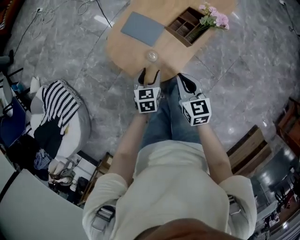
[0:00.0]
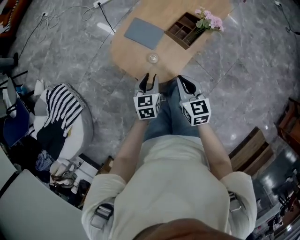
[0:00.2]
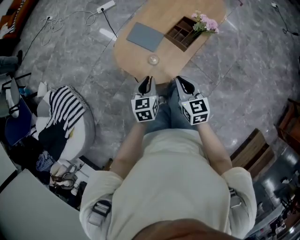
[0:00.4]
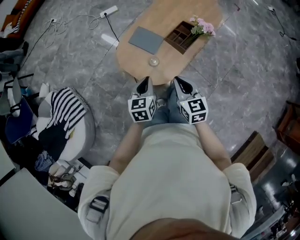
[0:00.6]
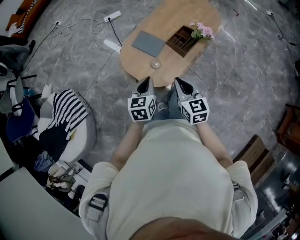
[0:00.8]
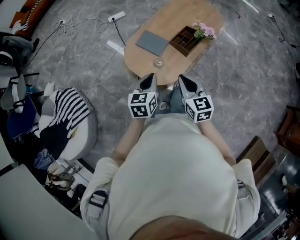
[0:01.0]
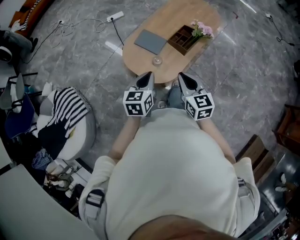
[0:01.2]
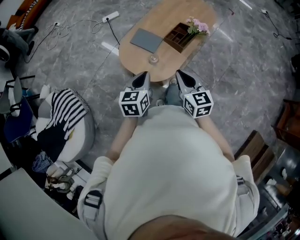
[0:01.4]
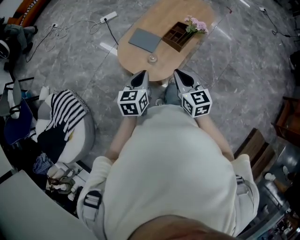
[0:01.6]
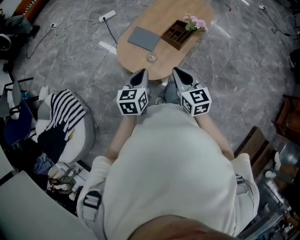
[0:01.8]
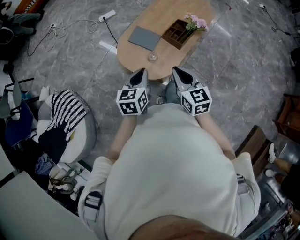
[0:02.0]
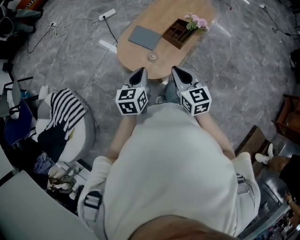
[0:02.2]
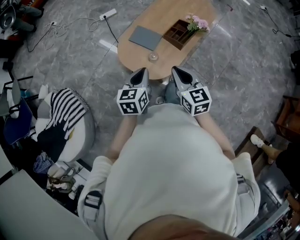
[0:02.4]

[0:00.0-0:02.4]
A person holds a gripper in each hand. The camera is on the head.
0.0 to 1.2 s: The left gripper shifts roughly 20 cm upward, and closes up; the right gripper goes some 15 cm upward and backward.
1.2 to 2.4 s: The grippers move only a little.

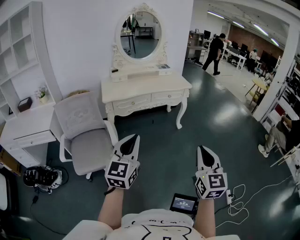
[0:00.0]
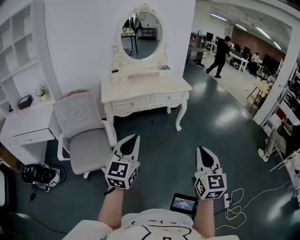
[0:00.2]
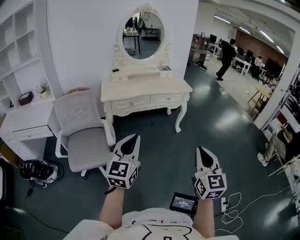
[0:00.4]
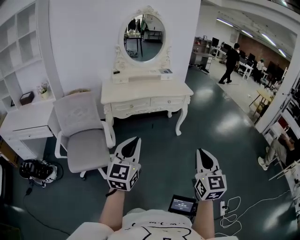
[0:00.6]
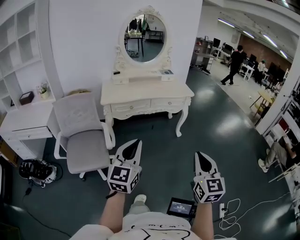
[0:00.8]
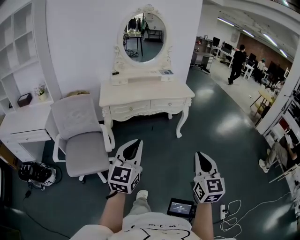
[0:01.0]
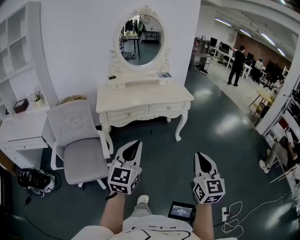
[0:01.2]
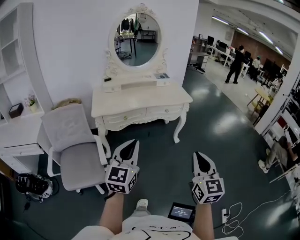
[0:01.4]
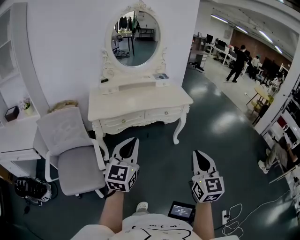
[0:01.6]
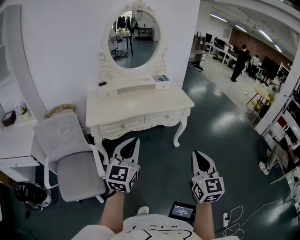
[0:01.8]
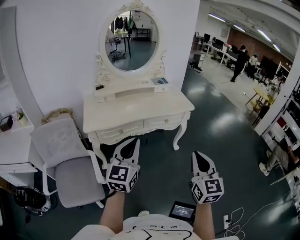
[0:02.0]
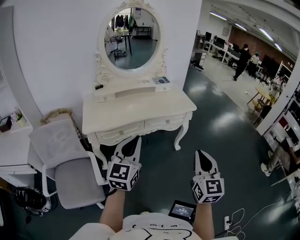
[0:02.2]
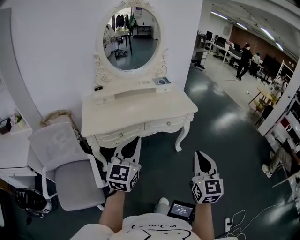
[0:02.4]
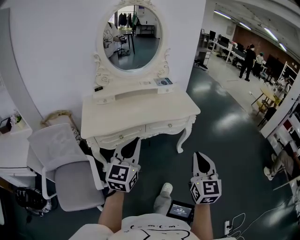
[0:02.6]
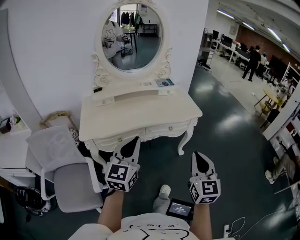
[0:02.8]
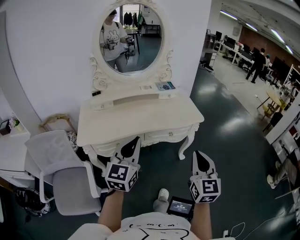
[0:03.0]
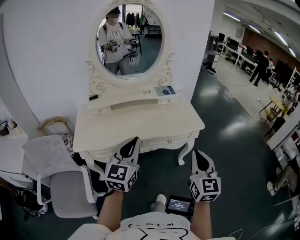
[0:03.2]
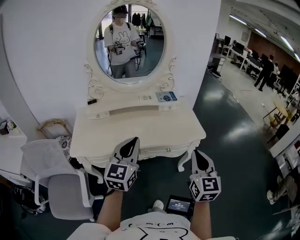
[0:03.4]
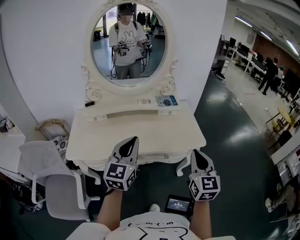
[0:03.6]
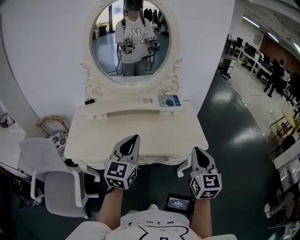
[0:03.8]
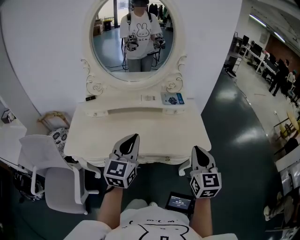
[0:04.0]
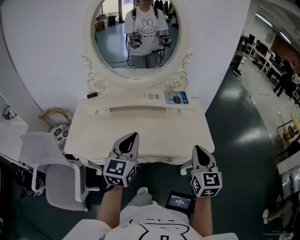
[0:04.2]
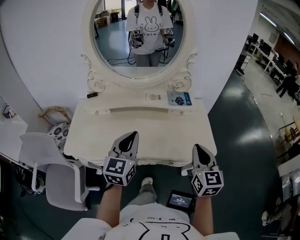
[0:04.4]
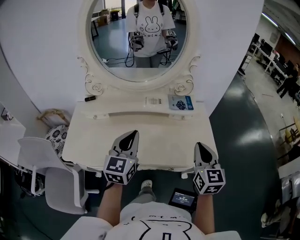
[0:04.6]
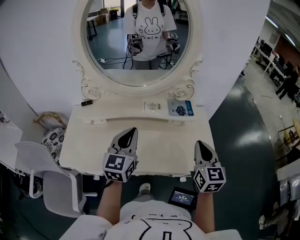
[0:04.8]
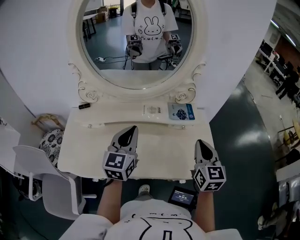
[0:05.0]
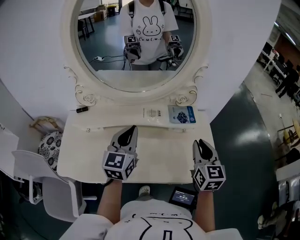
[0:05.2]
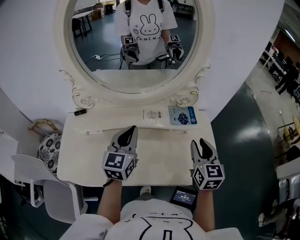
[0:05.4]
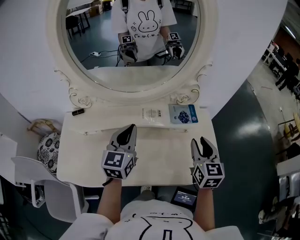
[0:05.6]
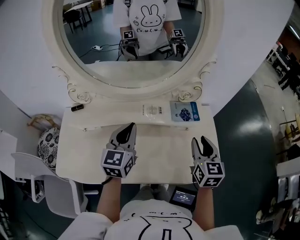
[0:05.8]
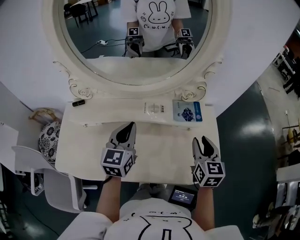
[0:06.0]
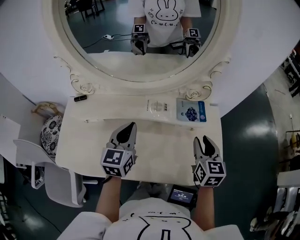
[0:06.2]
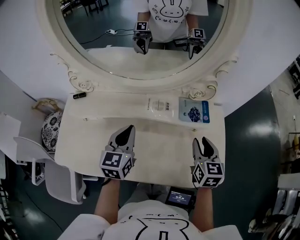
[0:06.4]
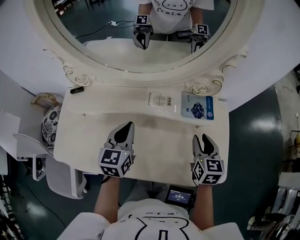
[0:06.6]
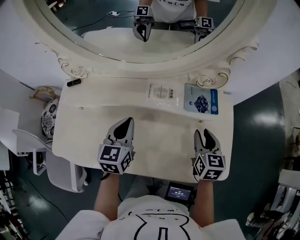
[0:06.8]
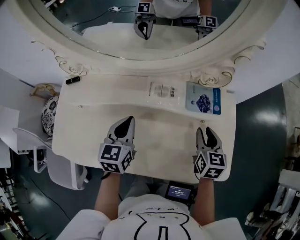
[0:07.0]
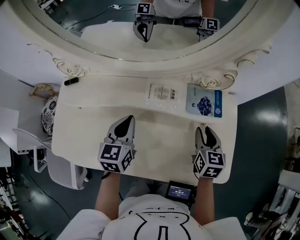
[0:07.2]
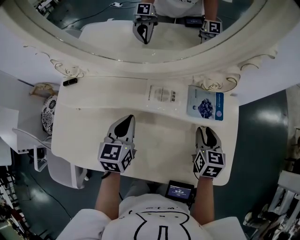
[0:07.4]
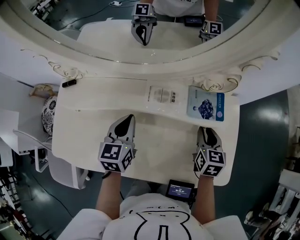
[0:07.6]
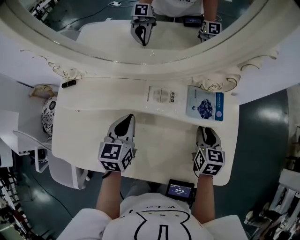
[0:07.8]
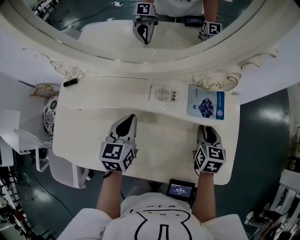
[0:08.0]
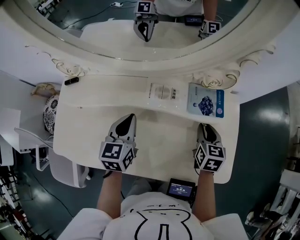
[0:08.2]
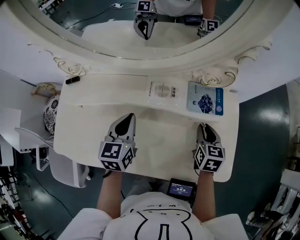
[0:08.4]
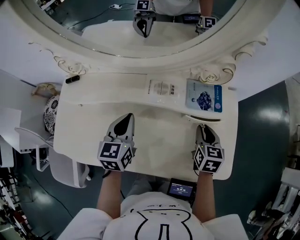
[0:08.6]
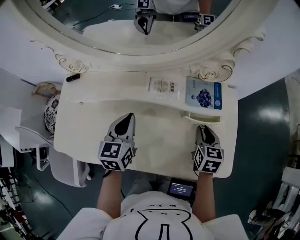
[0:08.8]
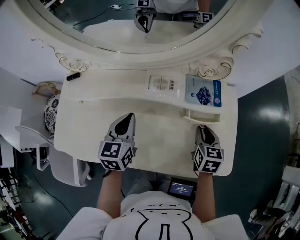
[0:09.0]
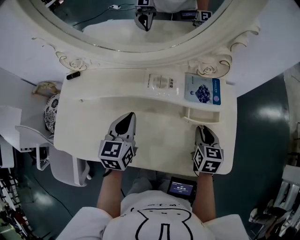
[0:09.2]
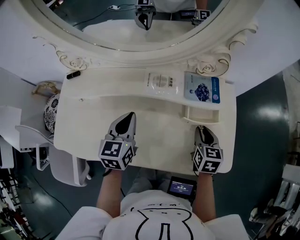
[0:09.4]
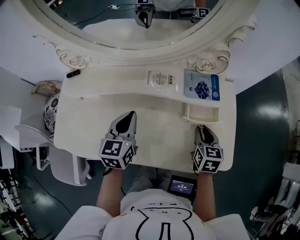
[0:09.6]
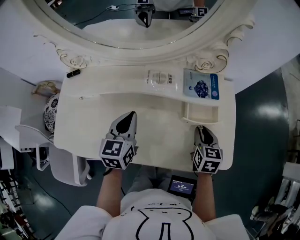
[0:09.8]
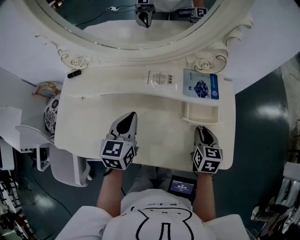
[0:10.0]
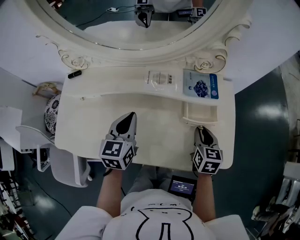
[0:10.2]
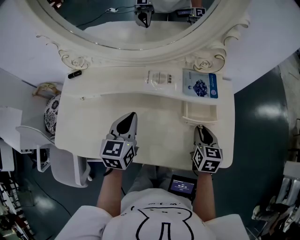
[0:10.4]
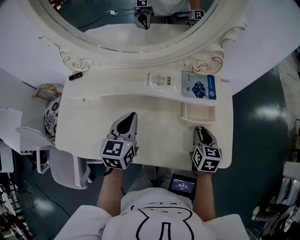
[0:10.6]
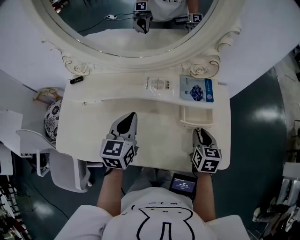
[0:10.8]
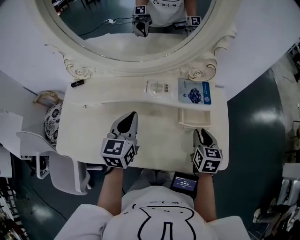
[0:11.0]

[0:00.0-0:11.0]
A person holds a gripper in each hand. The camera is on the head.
0.0 to 1.6 s: Both grippers move forward, approximately 20 cm.
1.6 to 3.2 s: The grippers both shift forward by approximately 30 cm.
3.2 to 4.8 s: The grippers both shift forward by about 30 cm.
4.8 to 6.2 s: Both grippers travel together forward and downward, some 15 cm. The right gripper opens.
6.2 to 7.8 s: The right gripper heads downward and forward, covering some 15 cm; the left gripper goes some 10 cm downward.
7.8 to 9.4 s: Both grippers move backward, some 5 cm.
9.4 to 11.0 s: The grippers make only small movements.

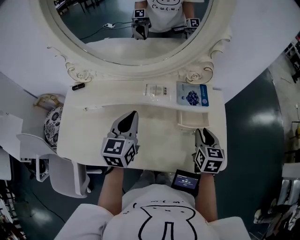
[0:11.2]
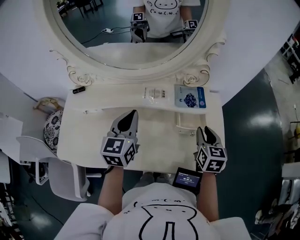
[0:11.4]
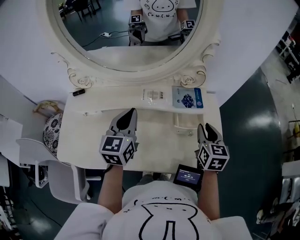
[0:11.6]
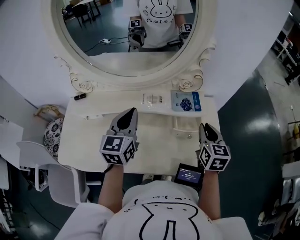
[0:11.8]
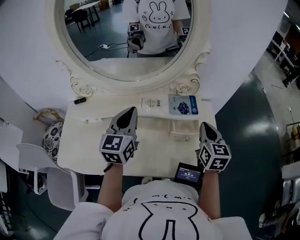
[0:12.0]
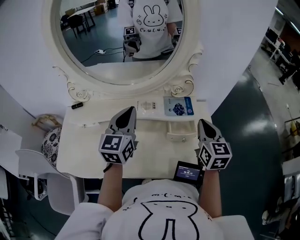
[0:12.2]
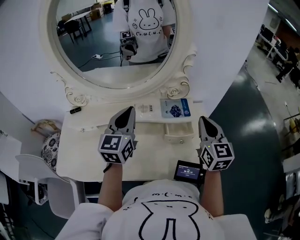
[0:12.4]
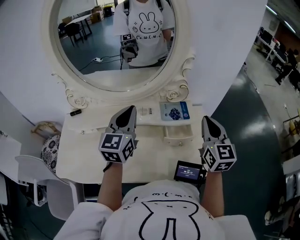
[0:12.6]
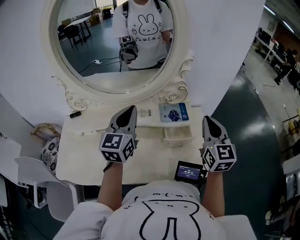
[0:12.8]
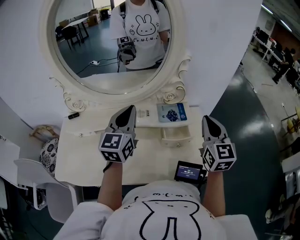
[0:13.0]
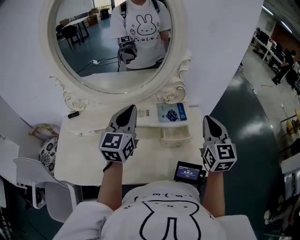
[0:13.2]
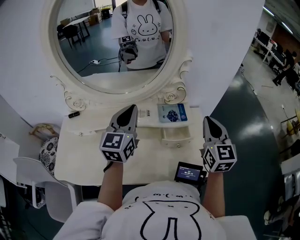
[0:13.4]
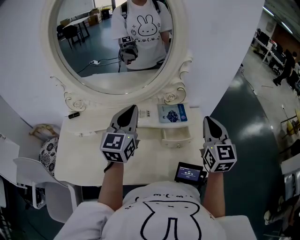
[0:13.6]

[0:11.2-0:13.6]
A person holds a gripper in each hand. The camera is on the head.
11.2 to 12.4 s: The left gripper heads upward, covering about 10 cm. The right gripper is displaced upward by about 15 cm, and turns by some 30 degrees.
12.4 to 13.6 s: The grippers make only small movements.

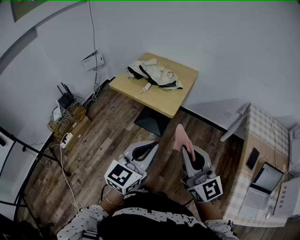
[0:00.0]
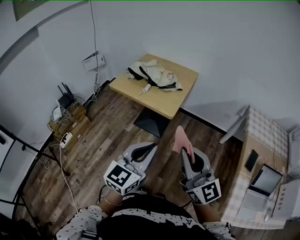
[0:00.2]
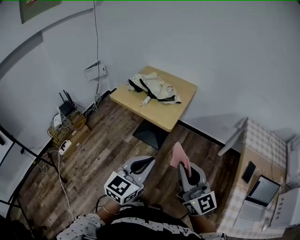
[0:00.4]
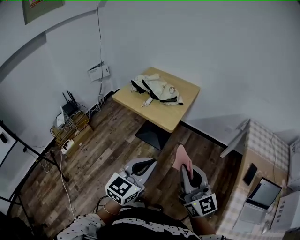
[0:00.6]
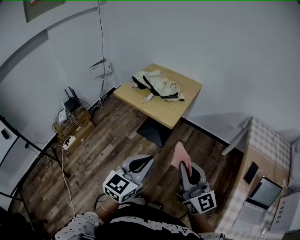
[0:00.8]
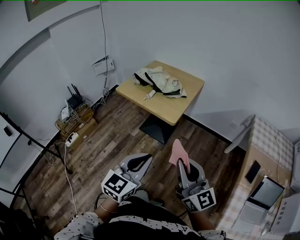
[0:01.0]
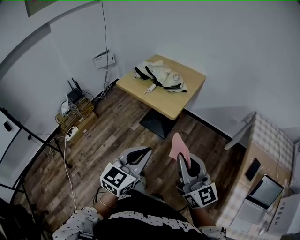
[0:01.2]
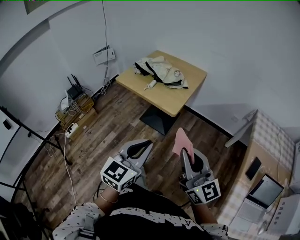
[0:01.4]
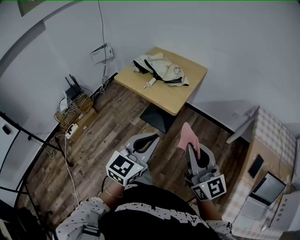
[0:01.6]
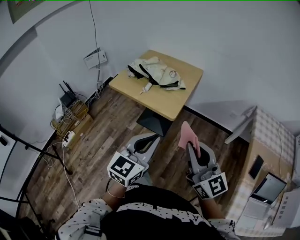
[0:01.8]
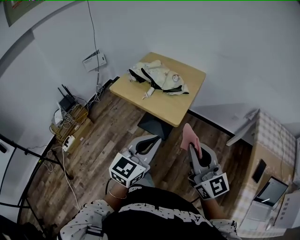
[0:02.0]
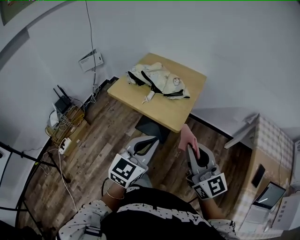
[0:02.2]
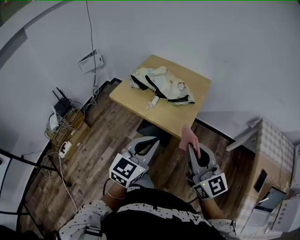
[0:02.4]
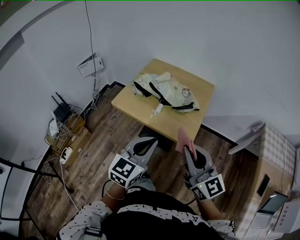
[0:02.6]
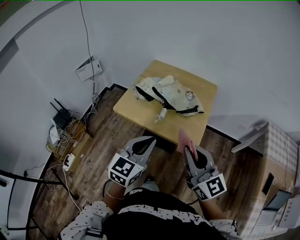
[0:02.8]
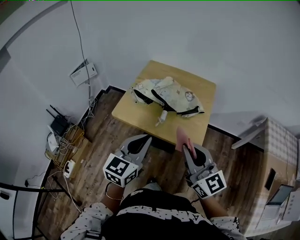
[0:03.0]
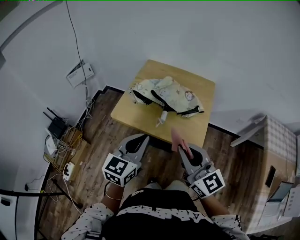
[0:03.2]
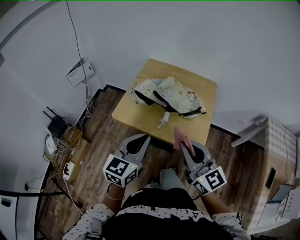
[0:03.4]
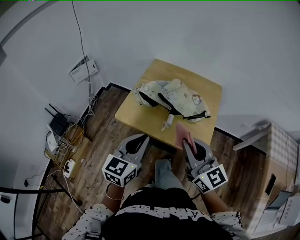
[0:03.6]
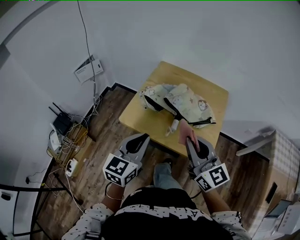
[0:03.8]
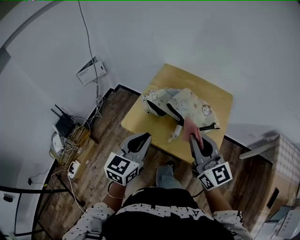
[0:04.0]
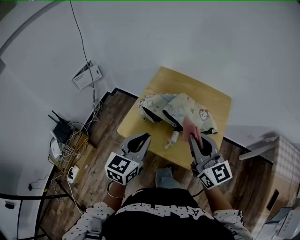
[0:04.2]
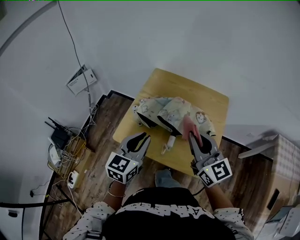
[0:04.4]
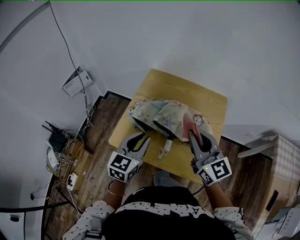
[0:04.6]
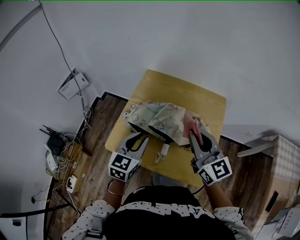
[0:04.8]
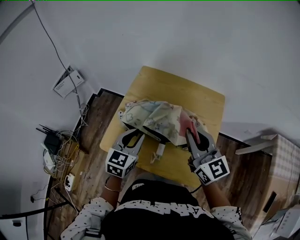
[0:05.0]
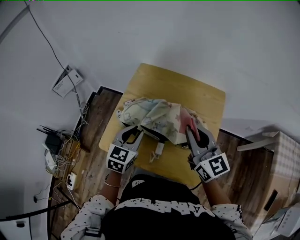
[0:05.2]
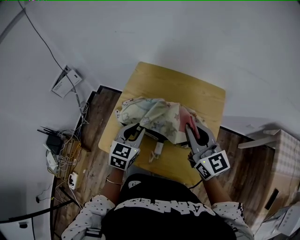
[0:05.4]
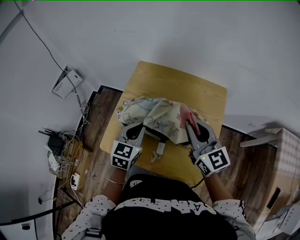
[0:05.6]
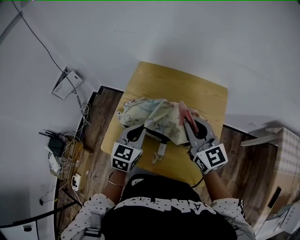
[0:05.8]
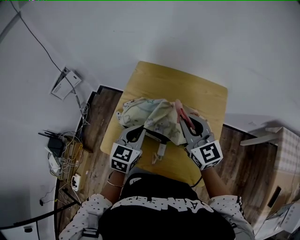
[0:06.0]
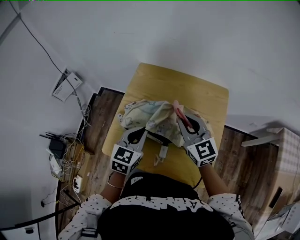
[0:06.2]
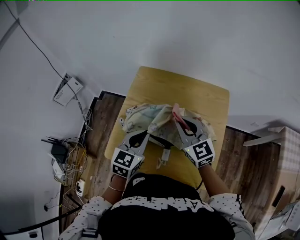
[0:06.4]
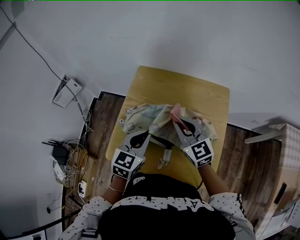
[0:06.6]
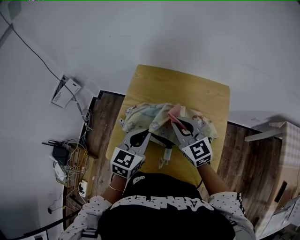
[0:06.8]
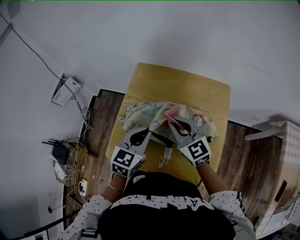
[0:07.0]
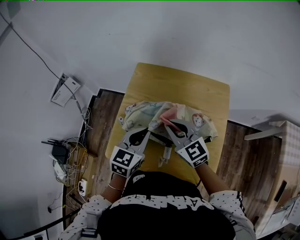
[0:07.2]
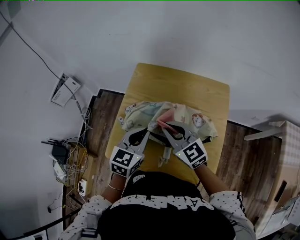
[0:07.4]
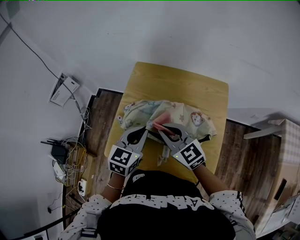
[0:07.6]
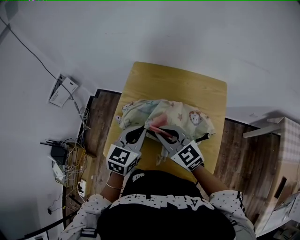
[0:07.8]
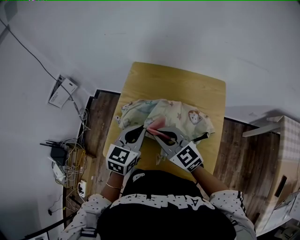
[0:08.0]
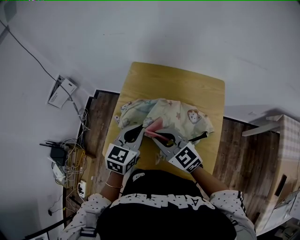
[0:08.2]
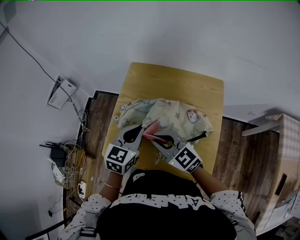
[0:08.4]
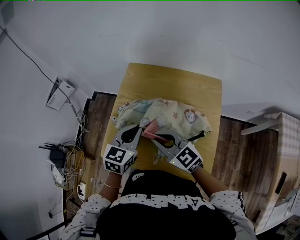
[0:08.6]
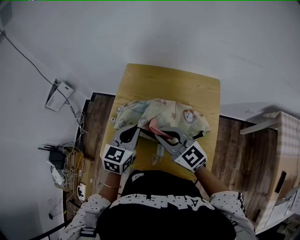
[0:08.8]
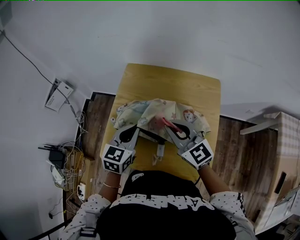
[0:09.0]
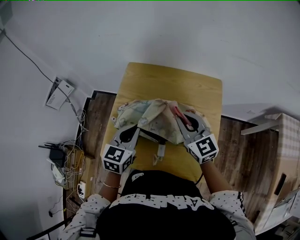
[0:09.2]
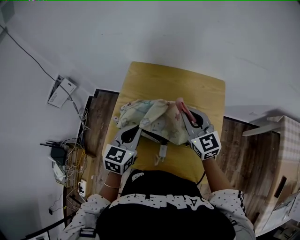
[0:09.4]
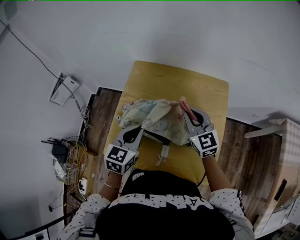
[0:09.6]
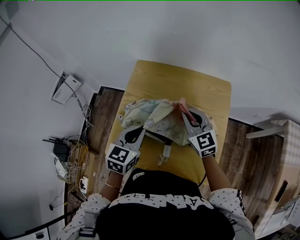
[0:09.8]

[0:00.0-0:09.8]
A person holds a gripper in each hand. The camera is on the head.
0.0 to 1.4 s: The right gripper ends up approximately 5 cm from where it was.
1.4 to 2.8 s: The two grippers go some 30 cm forward and to the left.
2.8 to 4.2 s: The left gripper goes about 20 cm forward and to the left; the right gripper moves forward, some 20 cm.
4.2 to 5.6 s: The left gripper moves forward and downward, roughly 20 cm; the right gripper travels forward and to the right by some 15 cm.
5.6 to 7.0 s: The right gripper travels to the left and downward by approximately 10 cm.
7.0 to 8.4 s: The right gripper goes approximately 10 cm backward and to the left.
8.4 to 9.8 s: The right gripper shifts some 15 cm to the right and forward, and swivels about 30 degrees.
